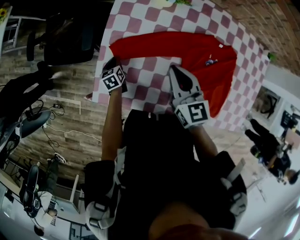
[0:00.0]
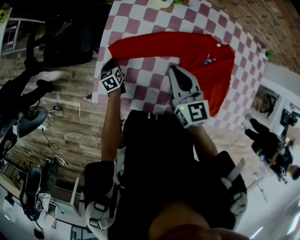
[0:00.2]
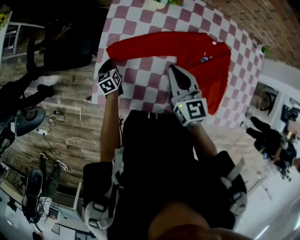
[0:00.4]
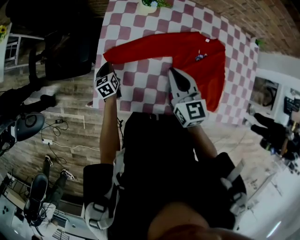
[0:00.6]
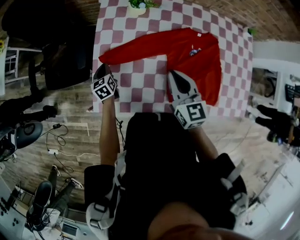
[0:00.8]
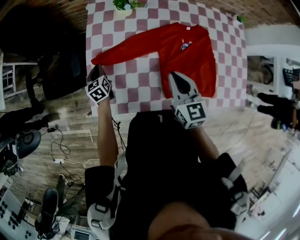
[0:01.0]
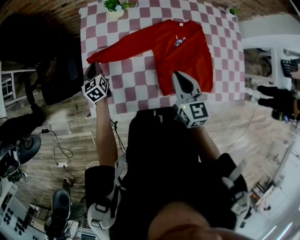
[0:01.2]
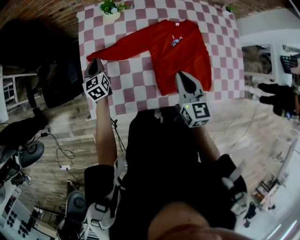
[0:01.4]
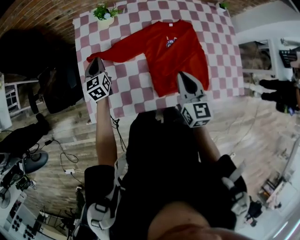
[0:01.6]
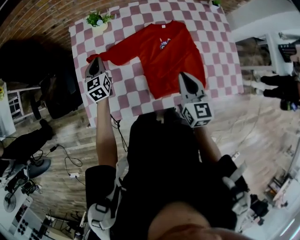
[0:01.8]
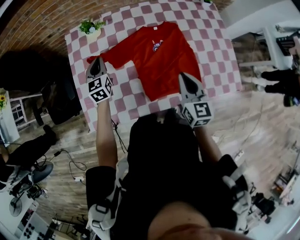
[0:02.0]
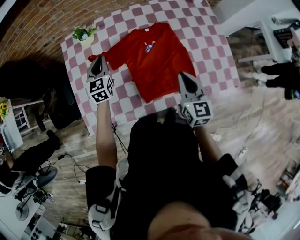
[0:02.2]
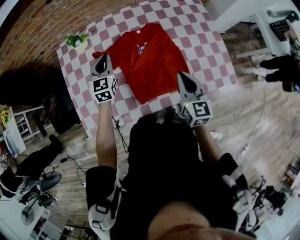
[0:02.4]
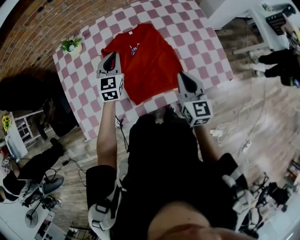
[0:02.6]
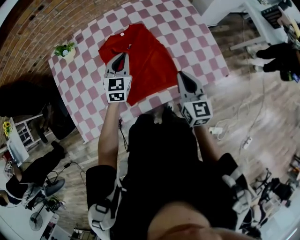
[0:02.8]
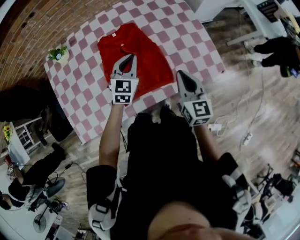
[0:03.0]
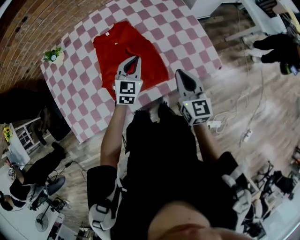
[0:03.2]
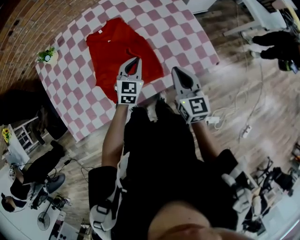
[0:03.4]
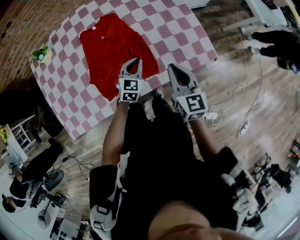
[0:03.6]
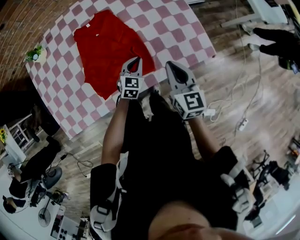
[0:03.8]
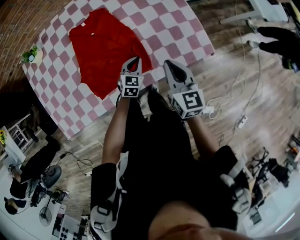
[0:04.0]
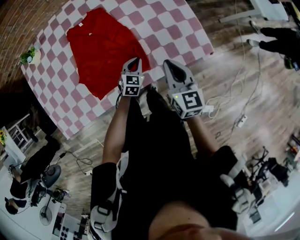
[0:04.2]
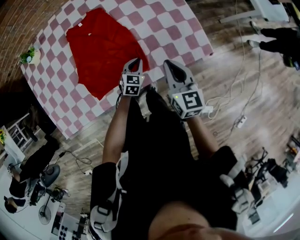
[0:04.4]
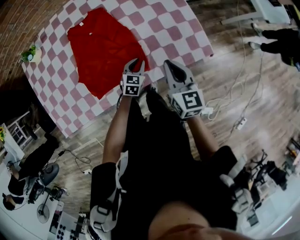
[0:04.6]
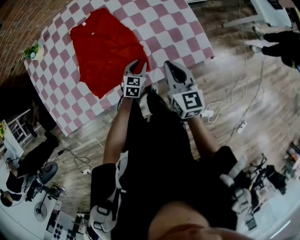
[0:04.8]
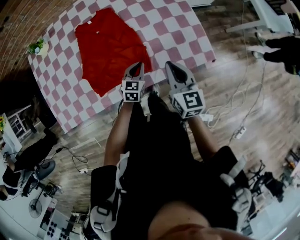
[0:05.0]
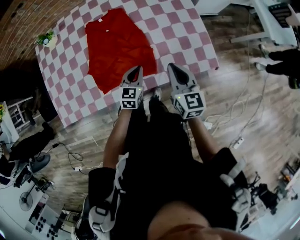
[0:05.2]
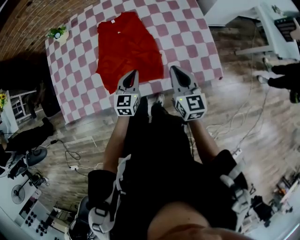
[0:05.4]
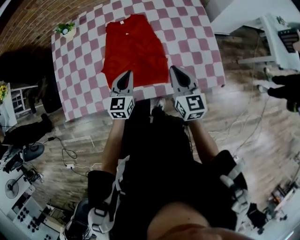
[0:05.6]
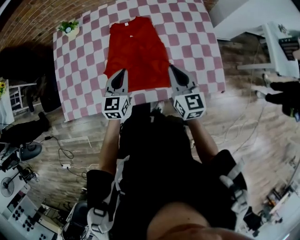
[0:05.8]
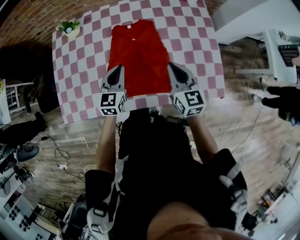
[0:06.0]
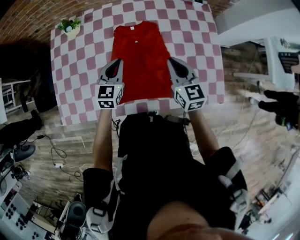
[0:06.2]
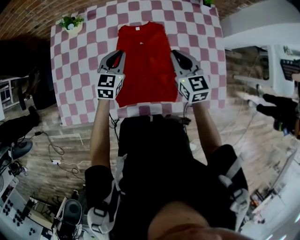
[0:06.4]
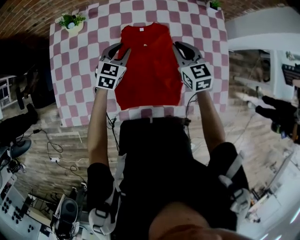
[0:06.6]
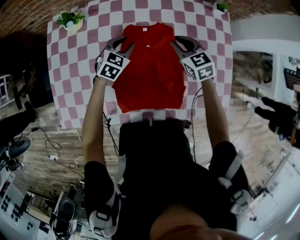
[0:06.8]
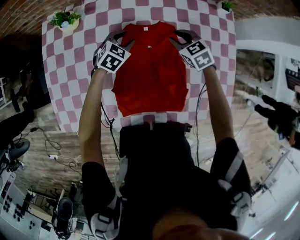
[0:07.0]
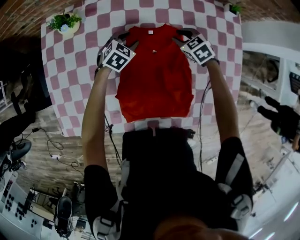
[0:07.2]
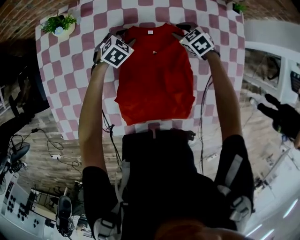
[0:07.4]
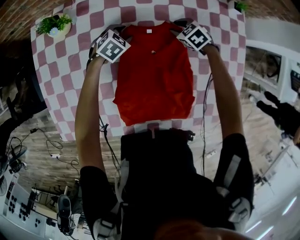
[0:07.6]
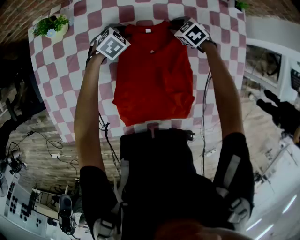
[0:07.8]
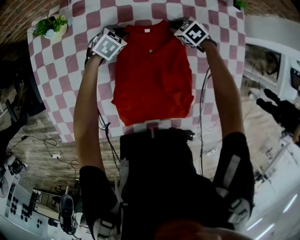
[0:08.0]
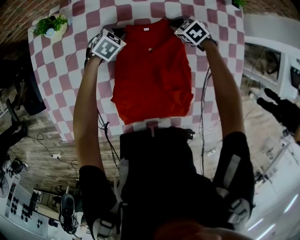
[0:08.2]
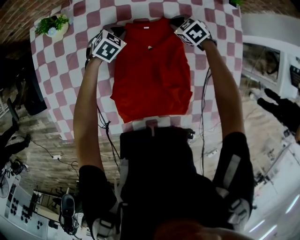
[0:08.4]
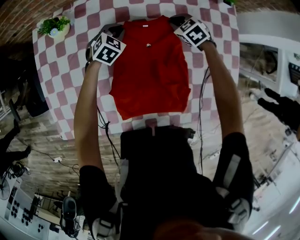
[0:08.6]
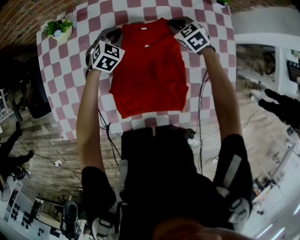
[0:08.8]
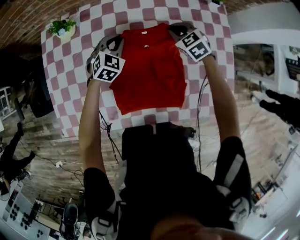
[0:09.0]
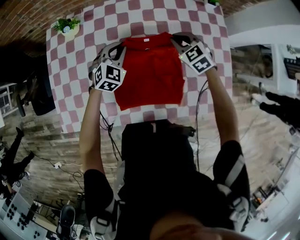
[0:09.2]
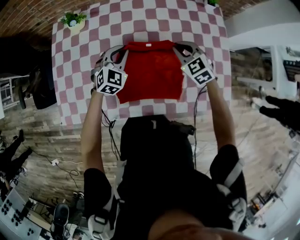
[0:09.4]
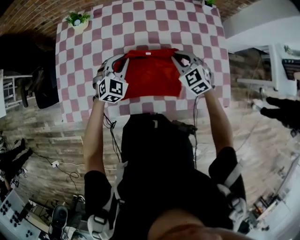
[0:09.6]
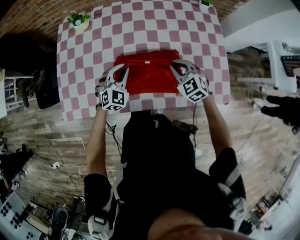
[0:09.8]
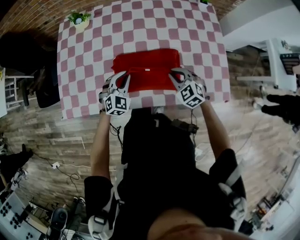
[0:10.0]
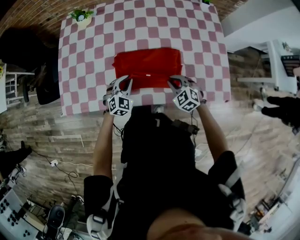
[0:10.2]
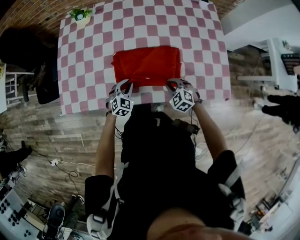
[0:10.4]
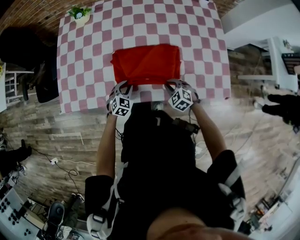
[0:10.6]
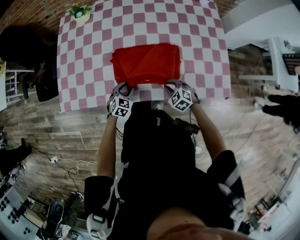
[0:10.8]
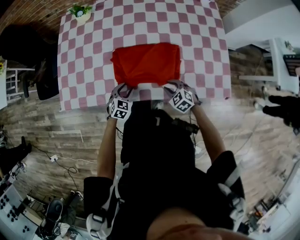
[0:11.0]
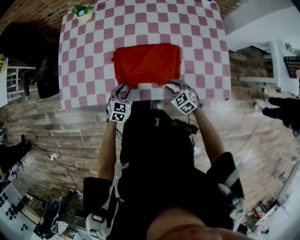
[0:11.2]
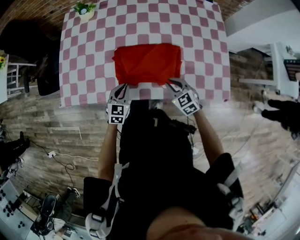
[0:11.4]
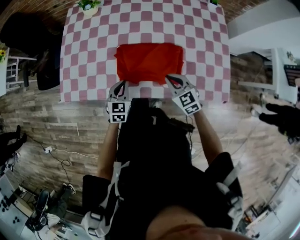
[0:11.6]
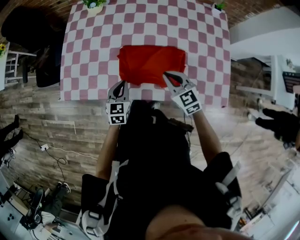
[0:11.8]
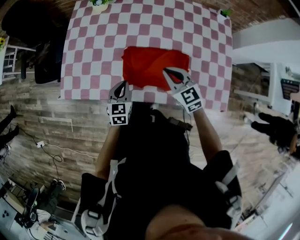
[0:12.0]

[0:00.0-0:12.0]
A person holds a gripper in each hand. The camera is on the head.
0:00.0 to 0:01.6: The left gripper shifts some 25 cm upward and to the right, and turns by approximately 40 degrees. Meanwhile the right gripper heads to the right and backward, covering roughly 25 cm, and rotates roughly 30 degrees.
0:01.6 to 0:03.0: The left gripper shifts by roughly 50 cm, and swivels about 50 degrees. Meanwhile the right gripper moves roughly 30 cm.
0:03.0 to 0:04.4: The right gripper travels to the right and downward by some 10 cm. Meanwhile the left gripper goes approximately 30 cm downward and to the right, and turns by roughly 20 degrees.
0:04.4 to 0:06.0: The right gripper moves to the left and forward, about 15 cm, and swivels some 20 degrees. Meanwhile the left gripper goes about 30 cm to the left and upward, turns by roughly 30 degrees, and opens and closes again.
0:06.0 to 0:07.6: Both grippers move forward and downward, roughly 40 cm. The left gripper tips its fingers downward by some 40 degrees, and opens its fingers; the right gripper tilts its fingers some 50 degrees downward, and opens.
0:07.6 to 0:09.0: Both grippers travel together upward and backward, about 15 cm. The left gripper swivels some 30 degrees, and closes up; the right gripper closes.
0:09.0 to 0:10.4: The grippers both shift backward by roughly 35 cm.
0:10.4 to 0:12.0: The left gripper is displaced upward and to the left by some 15 cm, changes its angle by roughly 40 degrees, and opens, then closes again, while the right gripper is displaced upward and forward by roughly 20 cm, and changes its angle by about 30 degrees.

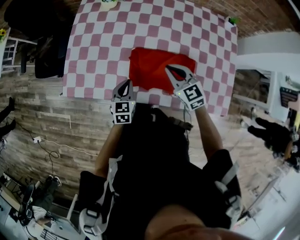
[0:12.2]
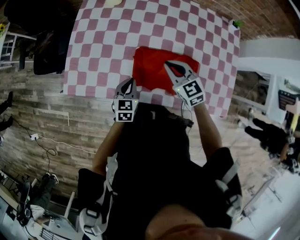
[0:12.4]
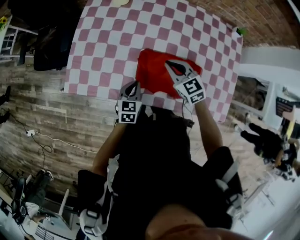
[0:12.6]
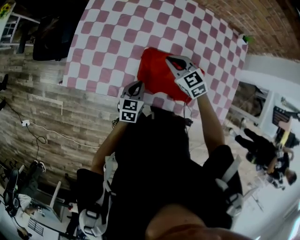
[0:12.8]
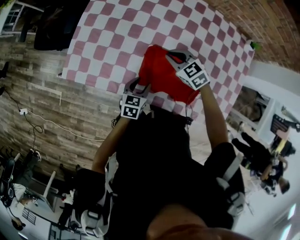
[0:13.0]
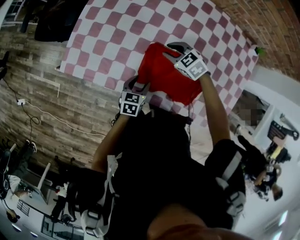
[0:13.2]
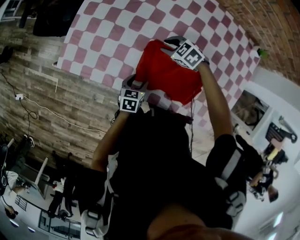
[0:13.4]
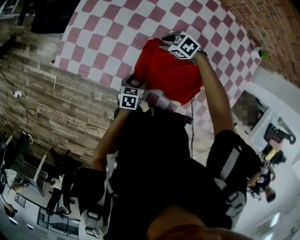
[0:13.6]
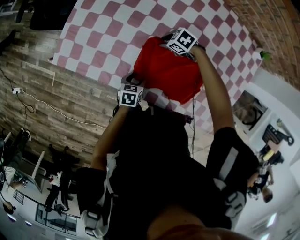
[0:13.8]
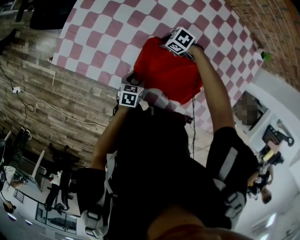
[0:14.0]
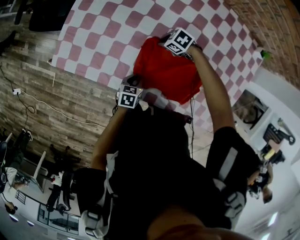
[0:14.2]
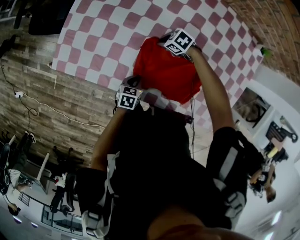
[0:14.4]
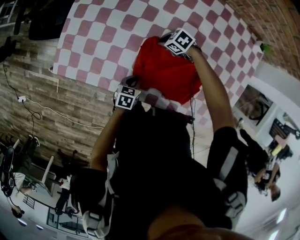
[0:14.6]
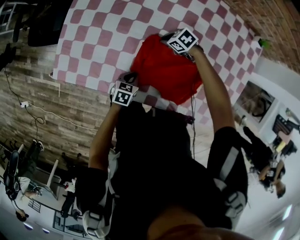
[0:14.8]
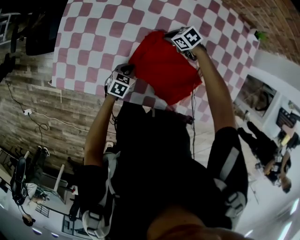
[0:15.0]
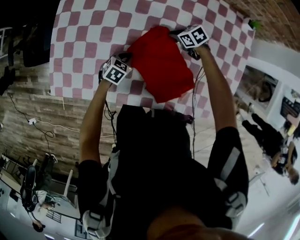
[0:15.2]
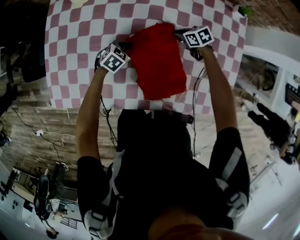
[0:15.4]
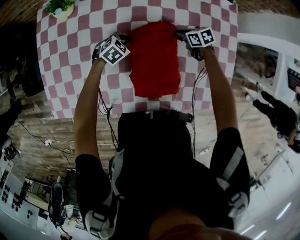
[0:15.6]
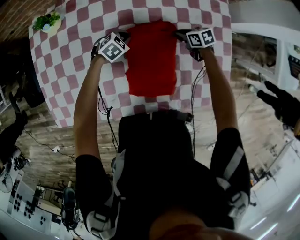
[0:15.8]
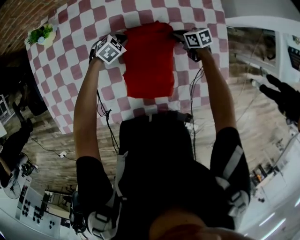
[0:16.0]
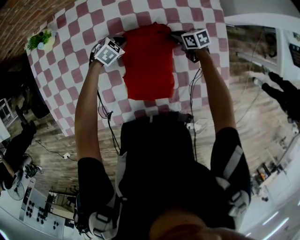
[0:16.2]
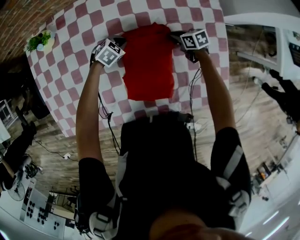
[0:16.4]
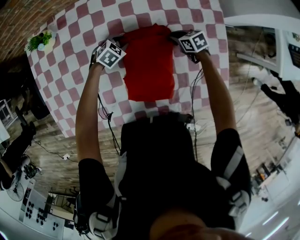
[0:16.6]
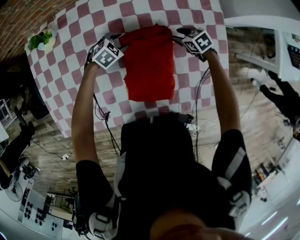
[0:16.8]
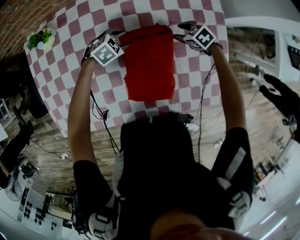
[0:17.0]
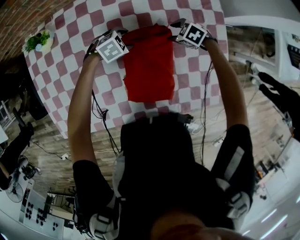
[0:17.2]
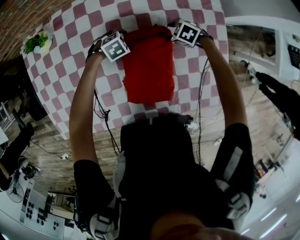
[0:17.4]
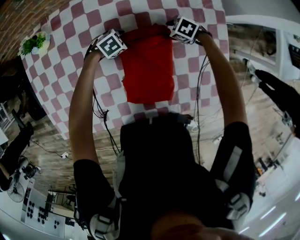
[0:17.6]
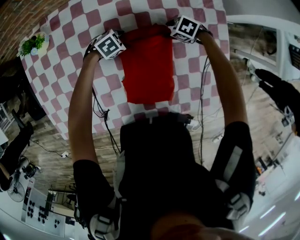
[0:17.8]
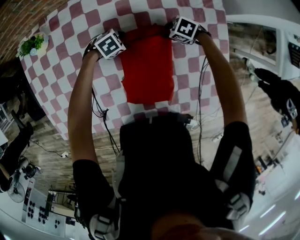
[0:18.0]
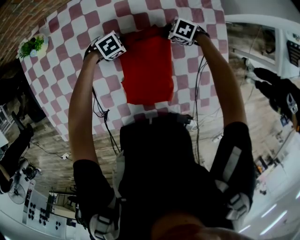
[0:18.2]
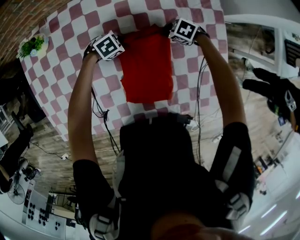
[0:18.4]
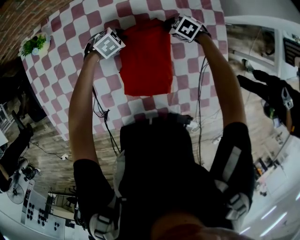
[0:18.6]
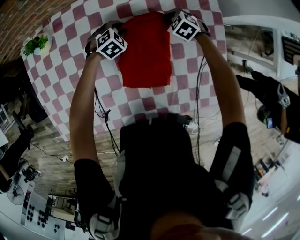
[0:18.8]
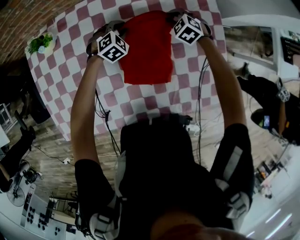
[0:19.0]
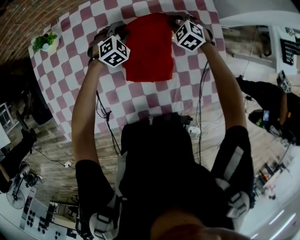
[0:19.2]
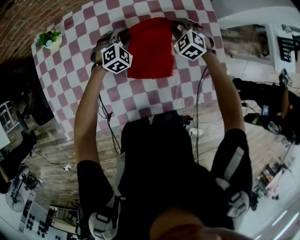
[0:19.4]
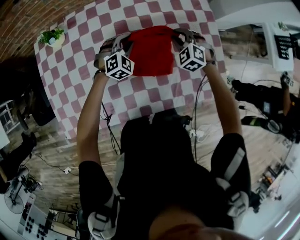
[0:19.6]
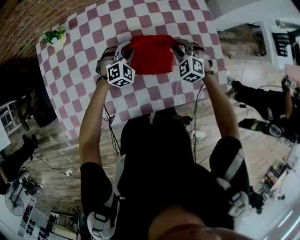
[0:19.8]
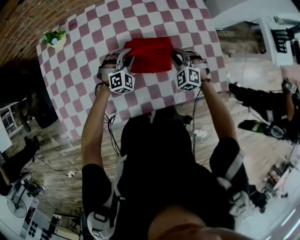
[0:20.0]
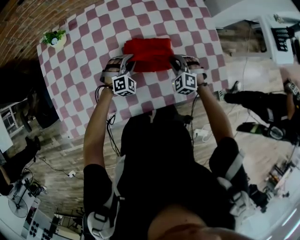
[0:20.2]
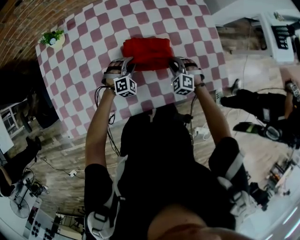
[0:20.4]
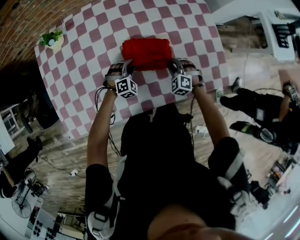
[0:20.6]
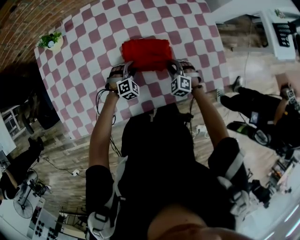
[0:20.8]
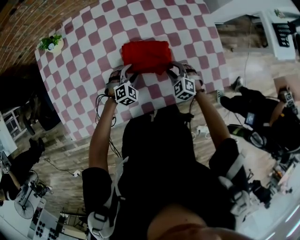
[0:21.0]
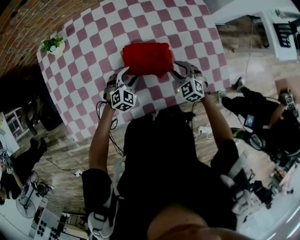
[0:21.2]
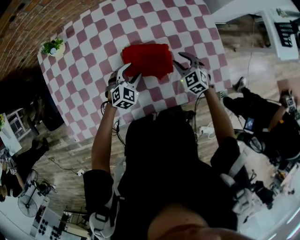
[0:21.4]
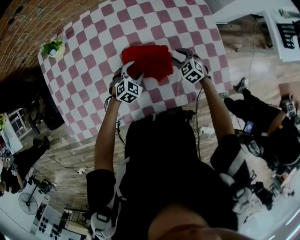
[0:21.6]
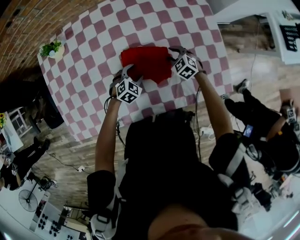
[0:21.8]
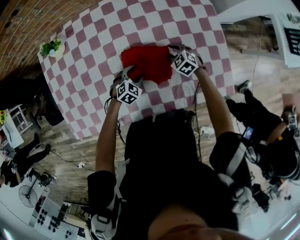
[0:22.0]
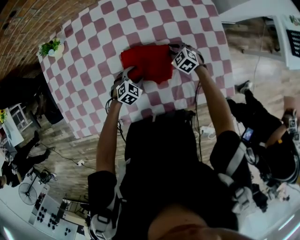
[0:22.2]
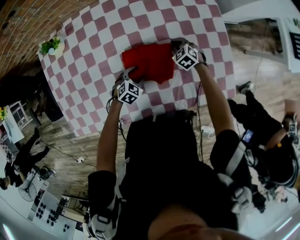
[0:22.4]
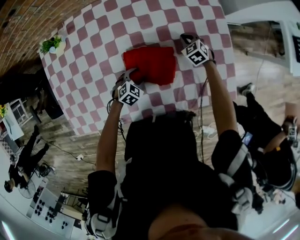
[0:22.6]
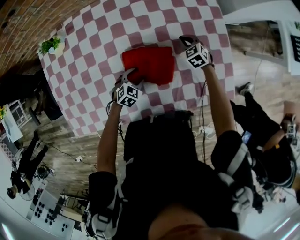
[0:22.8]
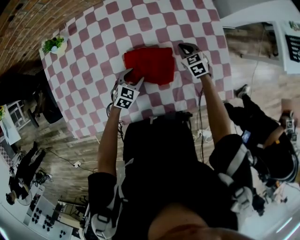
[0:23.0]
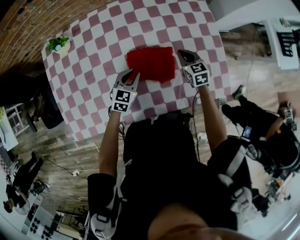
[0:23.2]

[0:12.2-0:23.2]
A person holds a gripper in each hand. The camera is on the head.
0:12.2 to 0:13.8: The right gripper heads downward, covering roughly 25 cm, angles its fingers downward, by approximately 30 degrees, and opens; the left gripper travels downward by roughly 15 cm, swivels some 40 degrees, and opens up.
0:13.8 to 0:15.4: The right gripper shifts by roughly 25 cm, rolls clockwise, seen from behind, by about 40 degrees, and closes its fingers, while the left gripper moves about 25 cm, rotates around the line of its fingers by about 60 degrees, clockwise from behind, and closes its fingers.
0:15.4 to 0:17.0: The left gripper changes place by roughly 20 cm, rotates roughly 30 degrees, and opens its fingers. Meanwhile the right gripper changes place by some 15 cm, and opens up.
0:17.0 to 0:18.4: The right gripper changes place by some 5 cm, and closes. Meanwhile the left gripper closes.
0:18.4 to 0:20.0: The left gripper goes about 15 cm upward, and changes its angle by approximately 60 degrees. Meanwhile the right gripper shifts by about 25 cm, and rotates roughly 50 degrees.
0:20.0 to 0:21.6: The left gripper swings up and down, about 10 cm each way, with 2 reversals, swivels roughly 30 degrees, and opens up. The right gripper swings up and down, some 10 cm each way, with 2 reversals, and rotates approximately 30 degrees.
0:21.6 to 0:23.2: The grippers both shift upward by roughly 5 cm. The right gripper travels forward and back again, some 15 cm each way, swivels about 30 degrees, and closes. Meanwhile the left gripper rotates approximately 30 degrees, and closes its fingers.
